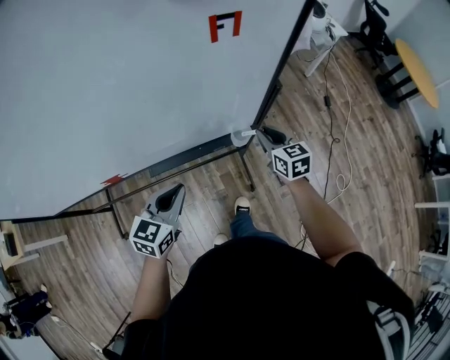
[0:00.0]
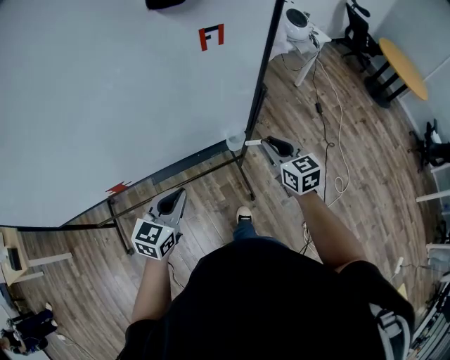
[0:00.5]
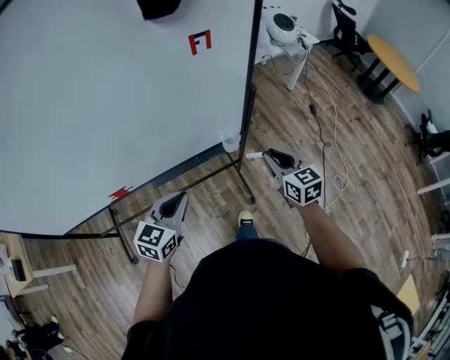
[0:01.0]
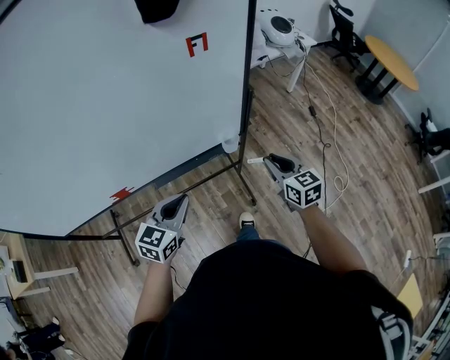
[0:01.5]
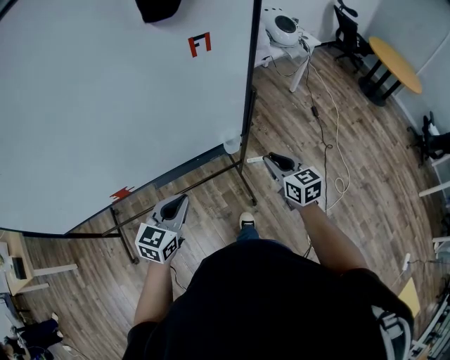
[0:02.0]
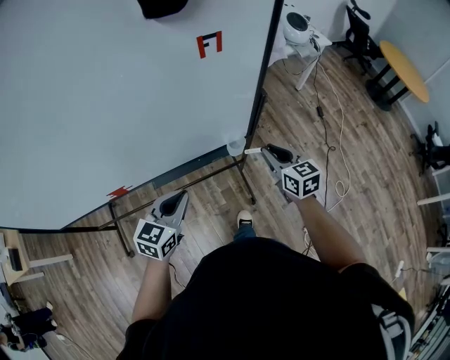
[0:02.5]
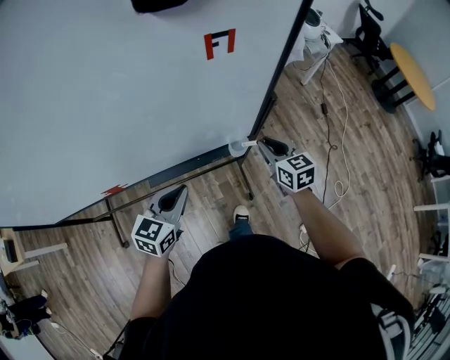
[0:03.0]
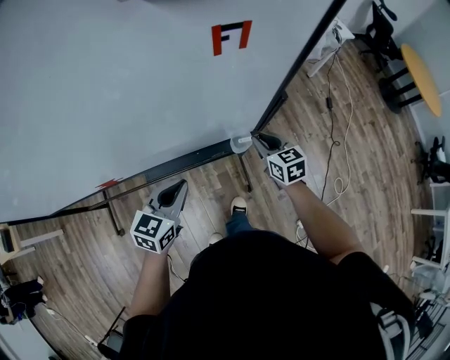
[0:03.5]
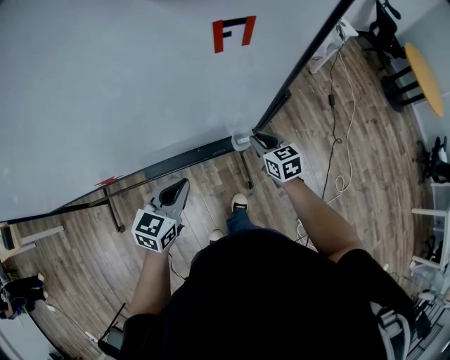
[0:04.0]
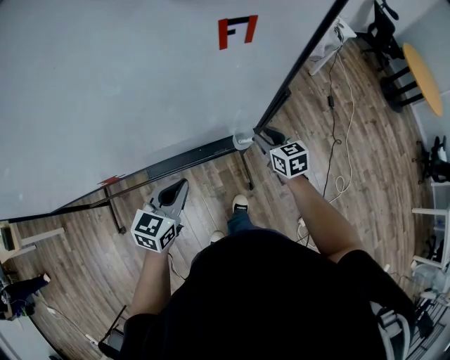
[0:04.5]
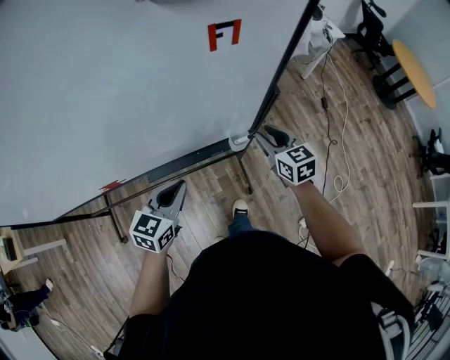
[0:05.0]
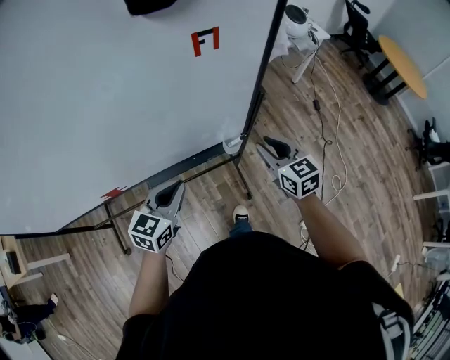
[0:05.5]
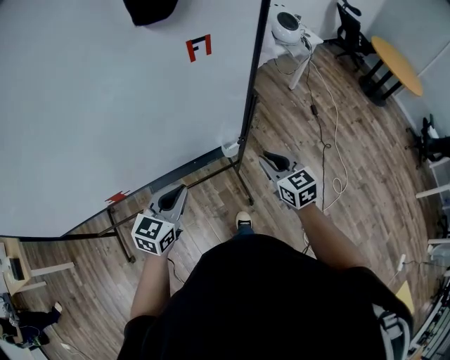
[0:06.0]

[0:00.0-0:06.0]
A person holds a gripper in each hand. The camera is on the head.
0:00.0 to 0:02.0: The right gripper travels backward and upward by about 15 cm. The left gripper heads backward, covering some 5 cm.
0:02.0 to 0:04.0: The left gripper shifts approximately 15 cm forward and downward. The right gripper travels forward and downward by about 20 cm.
0:04.0 to 0:06.0: The right gripper goes about 20 cm upward and backward. The left gripper shifts roughly 10 cm upward and backward.

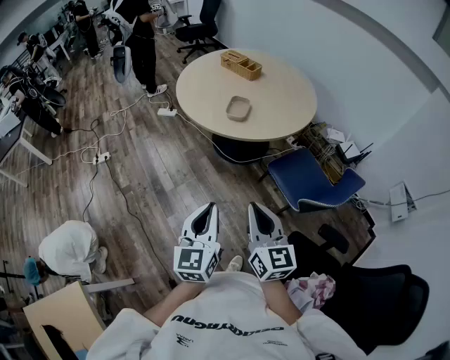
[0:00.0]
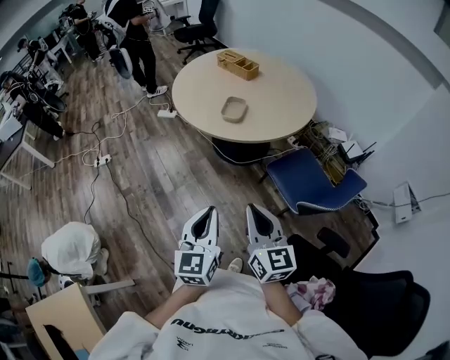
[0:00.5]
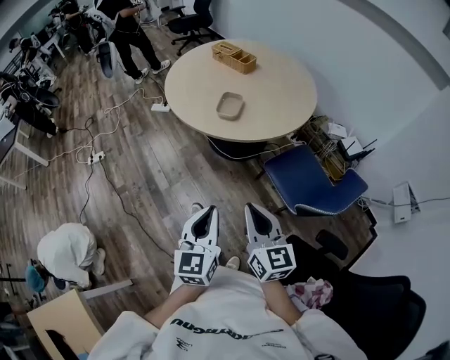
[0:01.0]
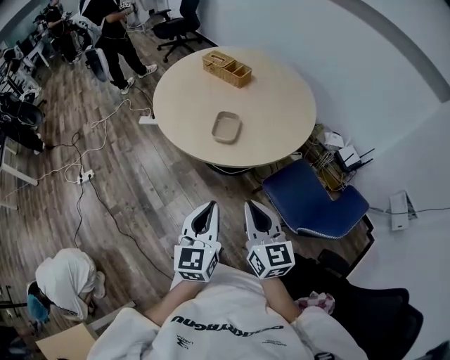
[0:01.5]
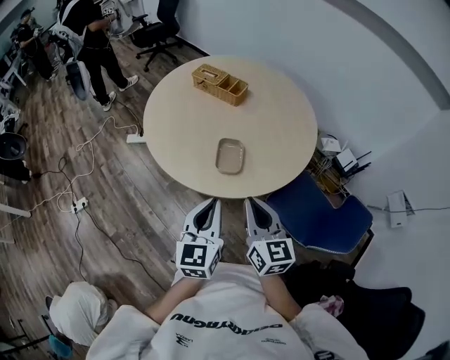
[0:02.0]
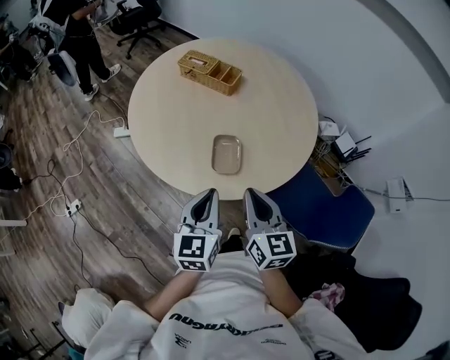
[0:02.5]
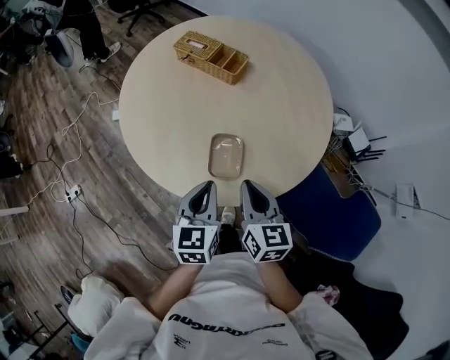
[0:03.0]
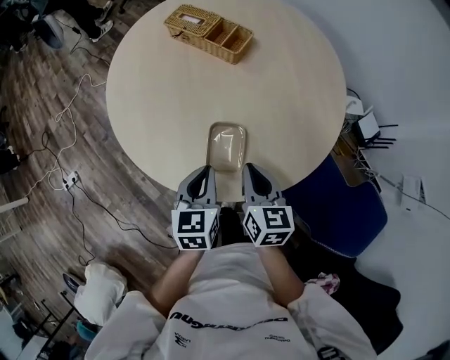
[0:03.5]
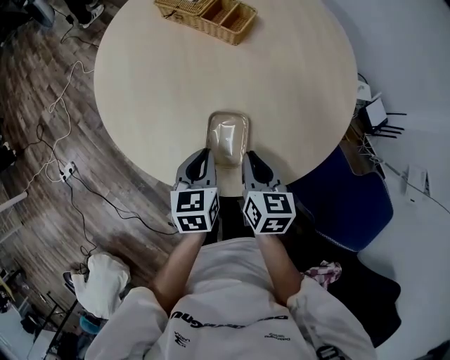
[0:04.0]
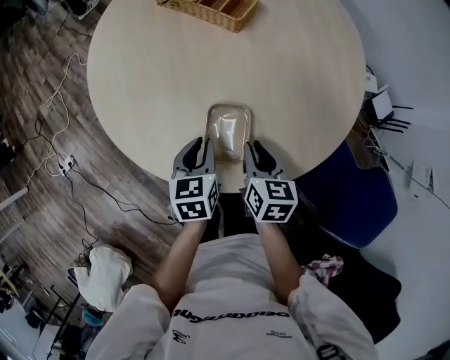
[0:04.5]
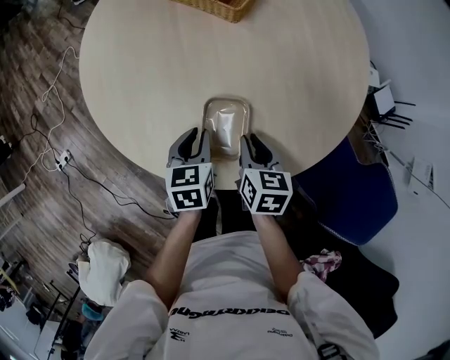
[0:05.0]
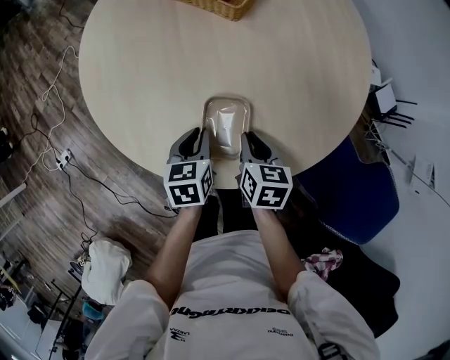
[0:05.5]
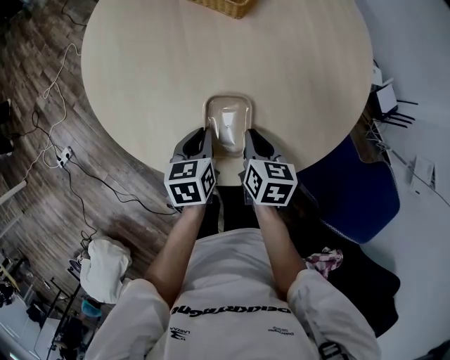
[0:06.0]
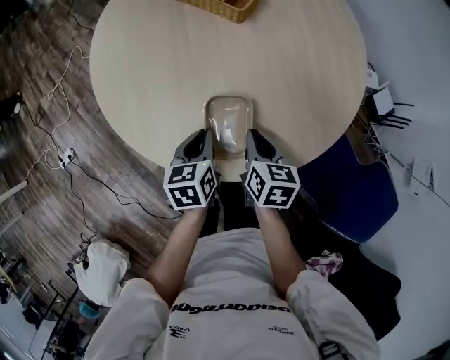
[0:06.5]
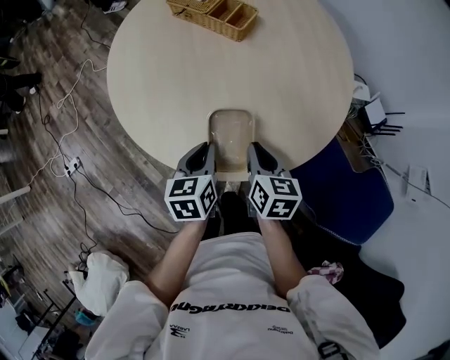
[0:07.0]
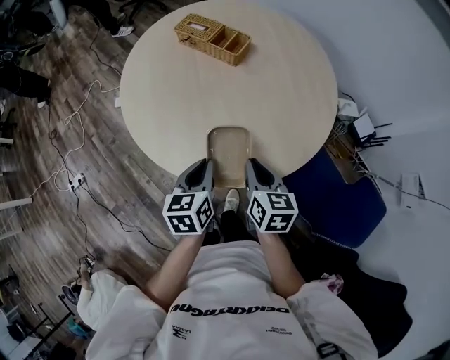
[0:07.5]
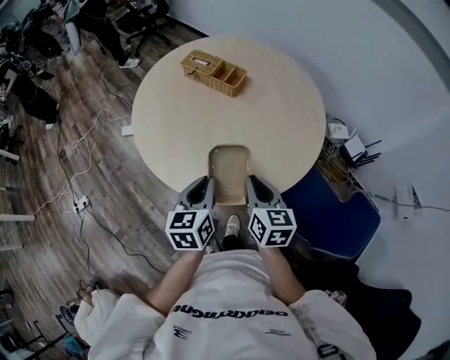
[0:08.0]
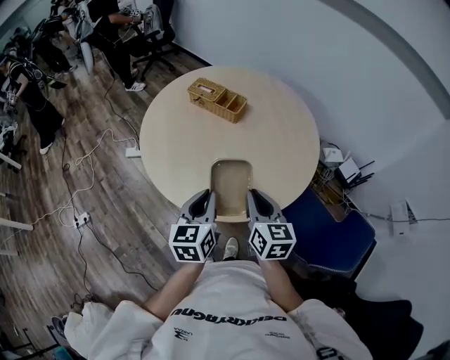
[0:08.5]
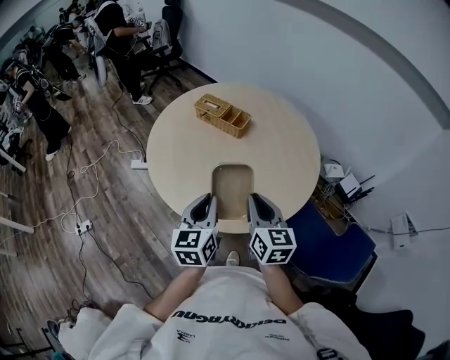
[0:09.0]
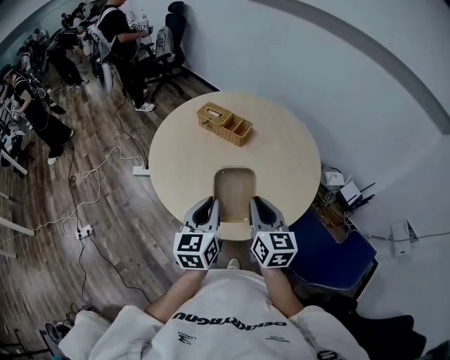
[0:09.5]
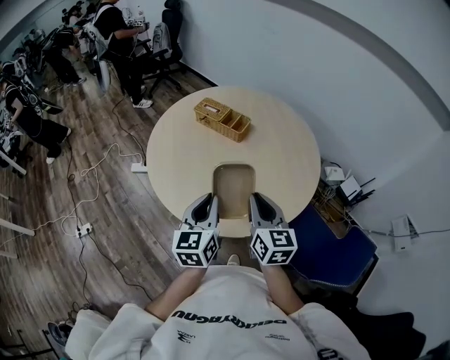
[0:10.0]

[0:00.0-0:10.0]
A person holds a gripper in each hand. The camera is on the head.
0:00.0 to 0:02.0: The two grippers travel together, forward, about 40 cm.
0:02.0 to 0:04.0: Both grippers travel together forward and downward, approximately 35 cm. The right gripper swivels approximately 30 degrees; the left gripper rotates some 30 degrees.
0:04.0 to 0:06.0: Both grippers move downward, about 10 cm.
0:06.0 to 0:08.0: The two grippers go approximately 30 cm upward and backward. The left gripper rotates roughly 20 degrees. Meanwhile the right gripper swivels roughly 20 degrees.
0:08.0 to 0:10.0: The two grippers go about 10 cm upward.

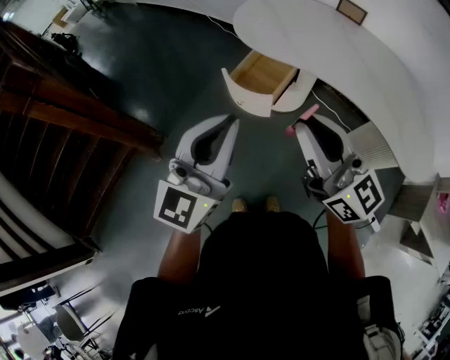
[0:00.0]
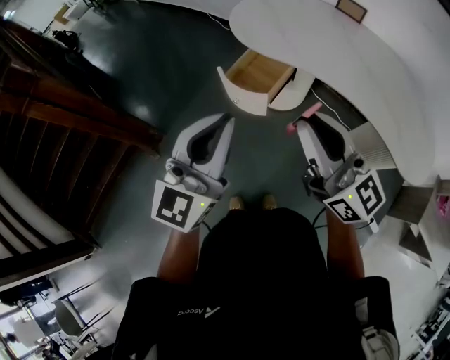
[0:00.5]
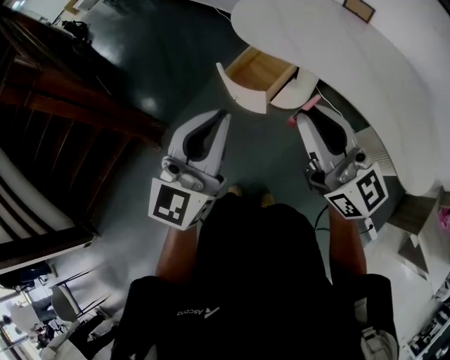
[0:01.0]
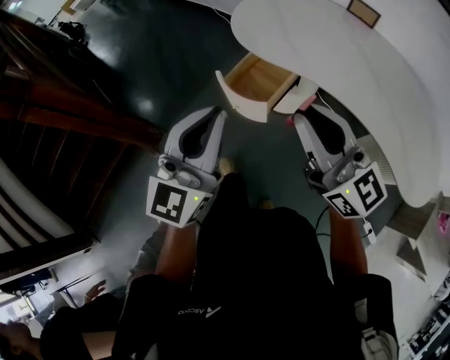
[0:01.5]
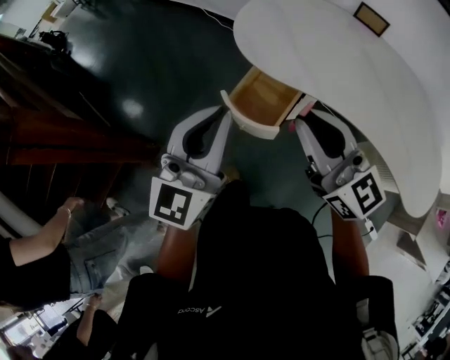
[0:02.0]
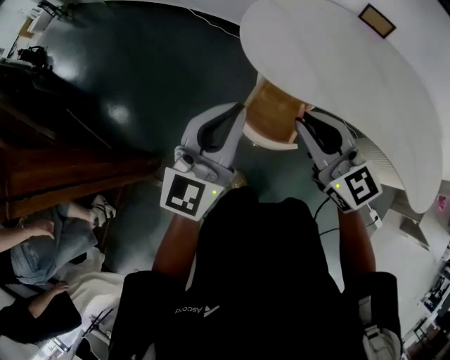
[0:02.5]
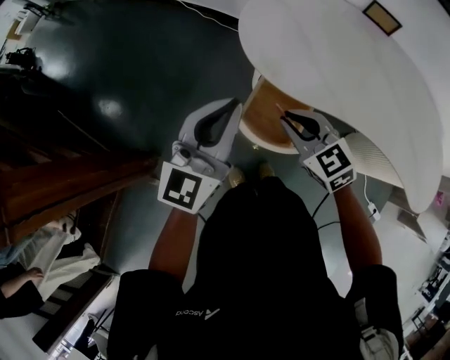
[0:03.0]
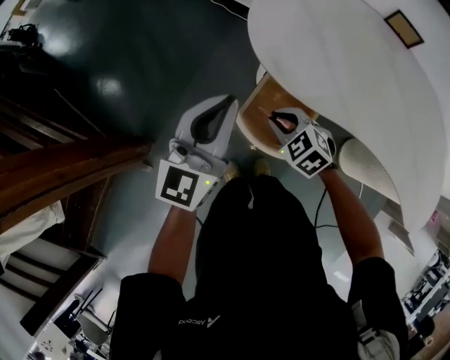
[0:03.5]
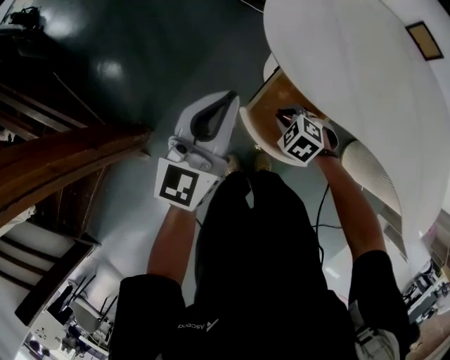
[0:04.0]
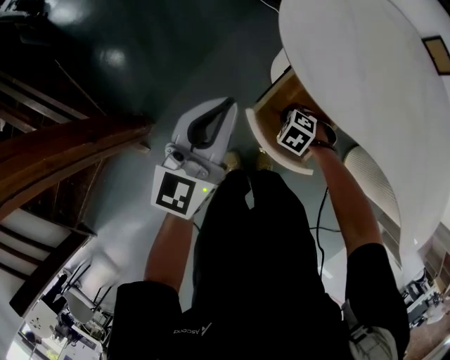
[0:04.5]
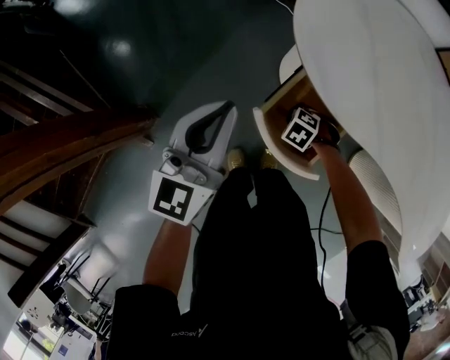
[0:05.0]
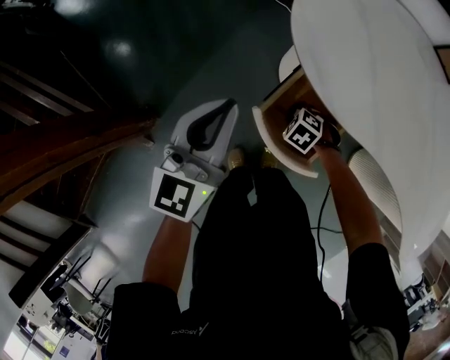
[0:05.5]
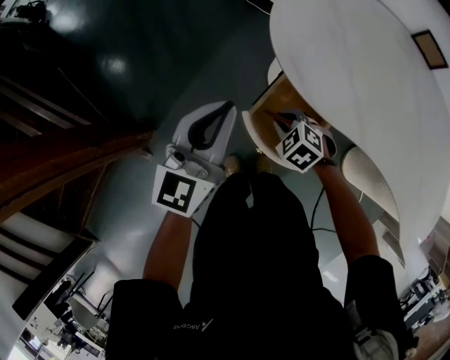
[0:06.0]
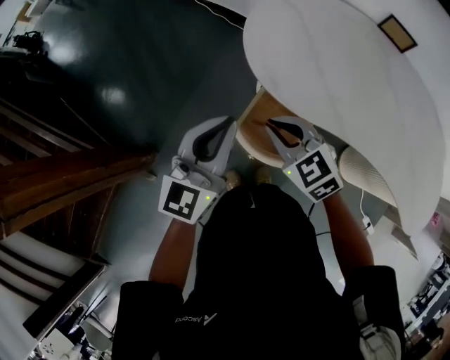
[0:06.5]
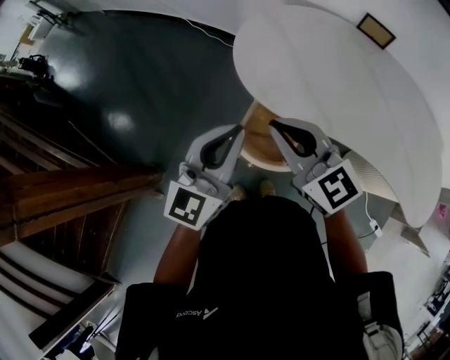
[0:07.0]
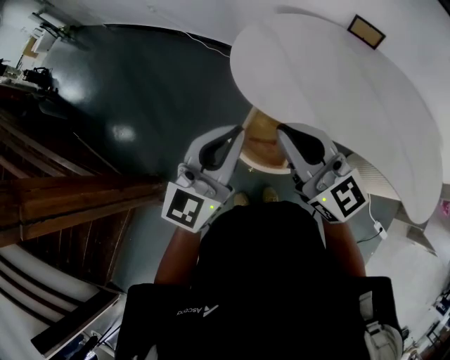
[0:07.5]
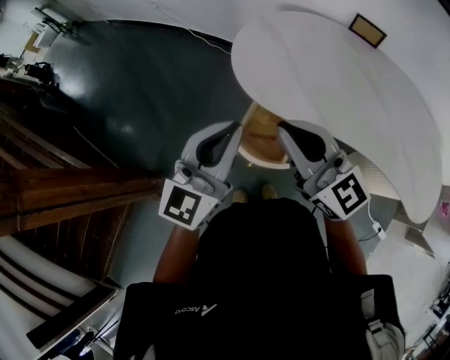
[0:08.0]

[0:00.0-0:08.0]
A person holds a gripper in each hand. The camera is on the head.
0:00.0 to 0:02.0: The two grippers go approximately 20 cm forward.
0:02.0 to 0:04.0: The left gripper shifts some 30 cm forward and downward; the right gripper is displaced downward and forward by roughly 50 cm, and angles its fingers downward, by some 70 degrees.
0:04.0 to 0:06.0: The right gripper travels downward and back again, roughly 10 cm each way.
0:06.0 to 0:08.0: The right gripper goes roughly 40 cm upward, and tips its fingers upward by some 70 degrees. Meanwhile the left gripper goes about 20 cm upward, backward and to the right.

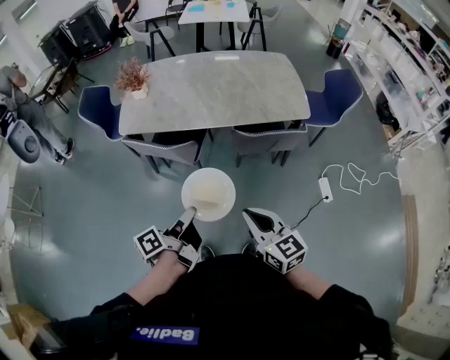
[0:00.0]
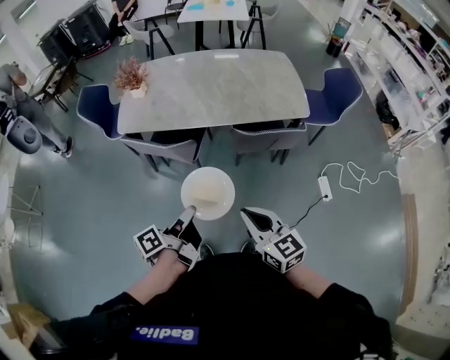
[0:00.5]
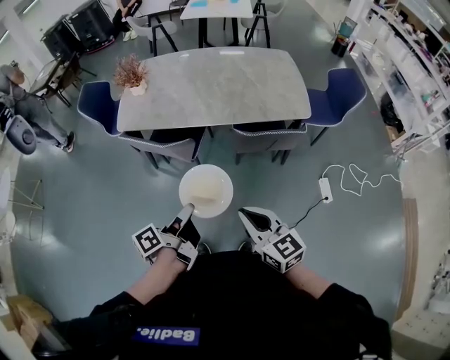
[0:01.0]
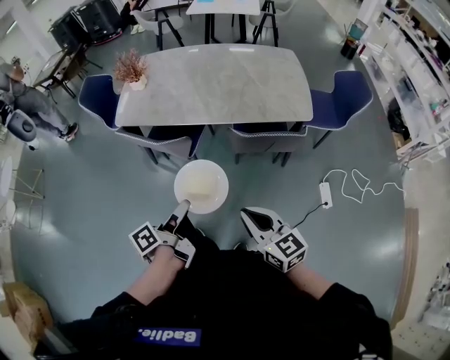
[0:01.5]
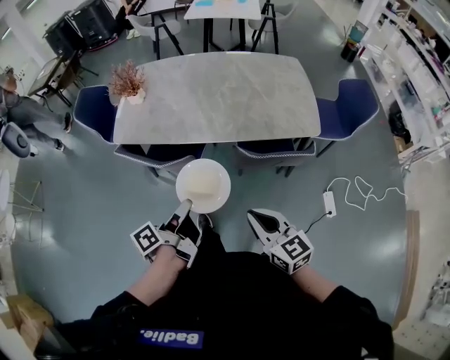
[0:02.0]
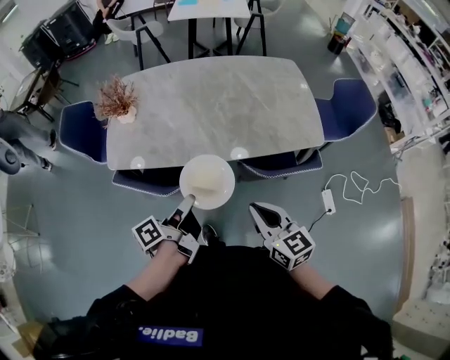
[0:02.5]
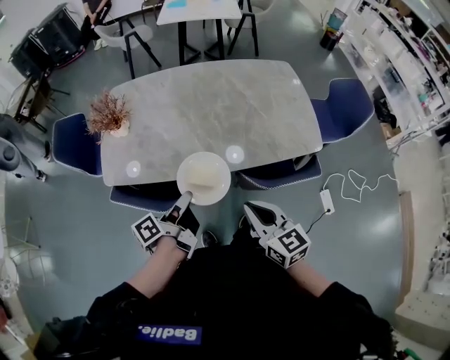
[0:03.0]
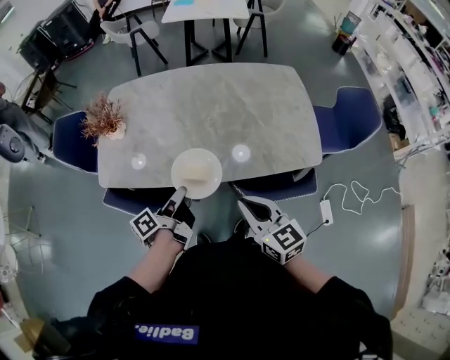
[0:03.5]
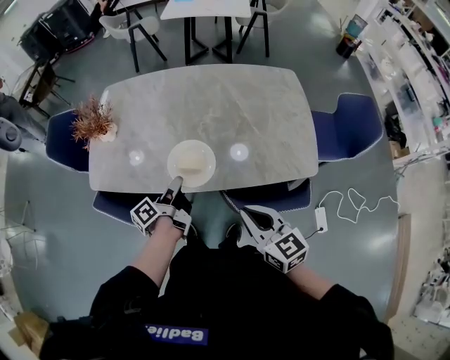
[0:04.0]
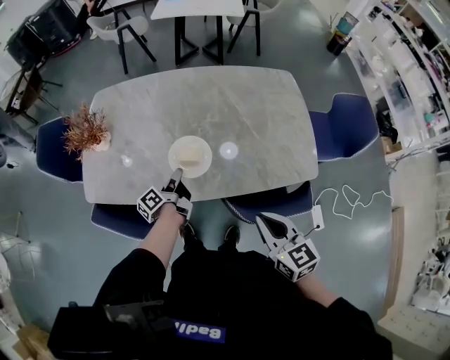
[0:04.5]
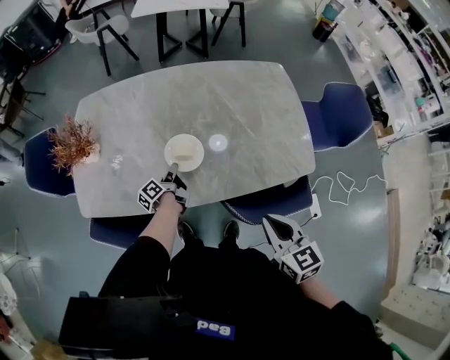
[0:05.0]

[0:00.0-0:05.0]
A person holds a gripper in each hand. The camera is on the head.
0:00.0 to 0:02.5: The two grippers go some 25 cm forward.
0:02.5 to 0:05.0: The left gripper moves forward and downward, some 40 cm; the right gripper is displaced forward and to the right by about 20 cm.
